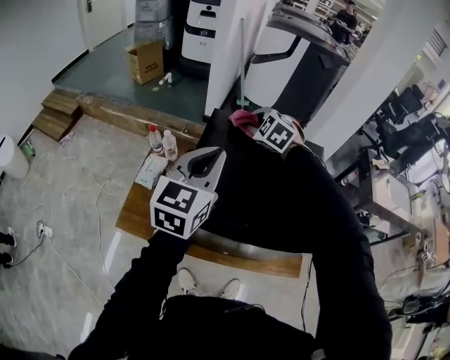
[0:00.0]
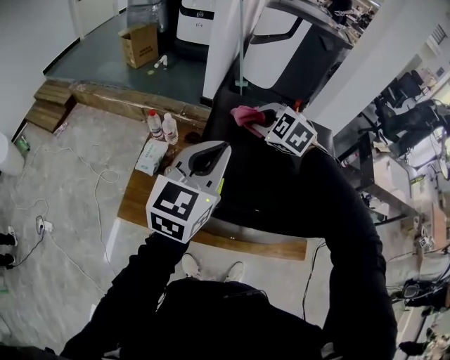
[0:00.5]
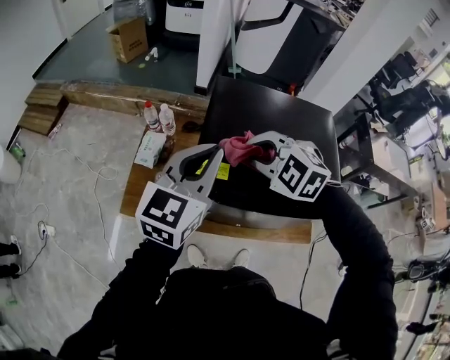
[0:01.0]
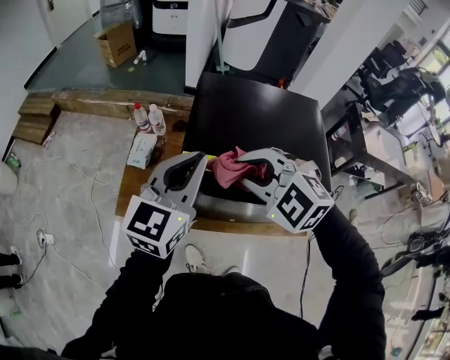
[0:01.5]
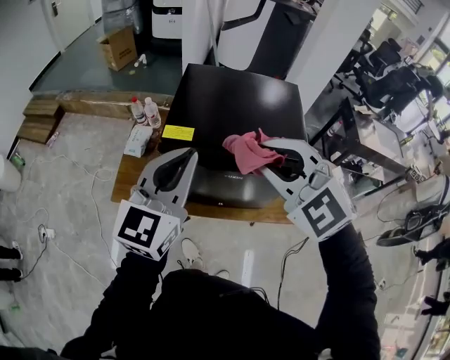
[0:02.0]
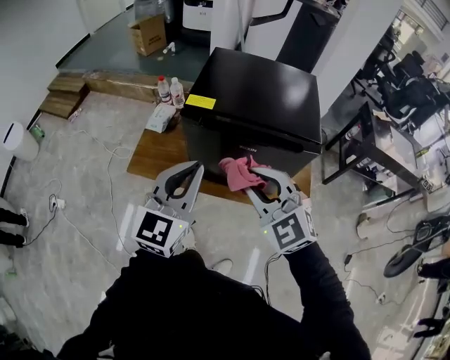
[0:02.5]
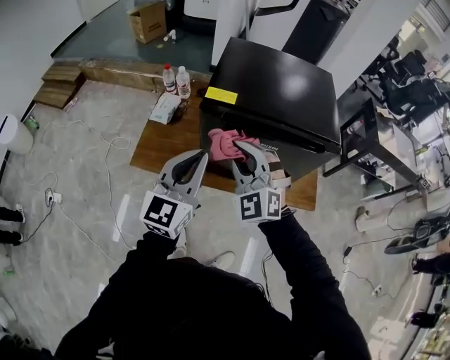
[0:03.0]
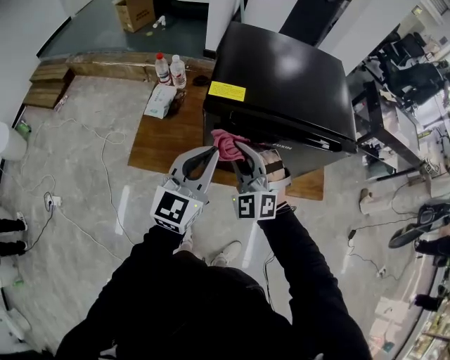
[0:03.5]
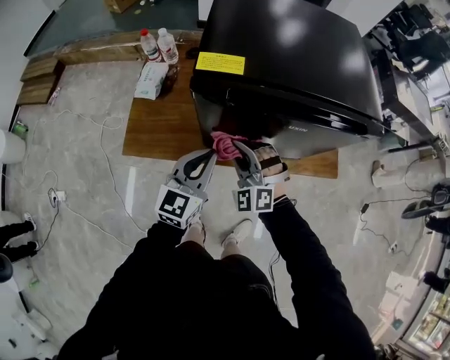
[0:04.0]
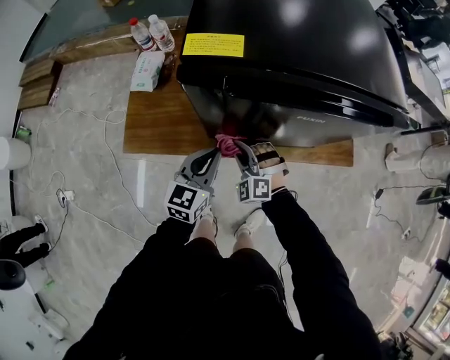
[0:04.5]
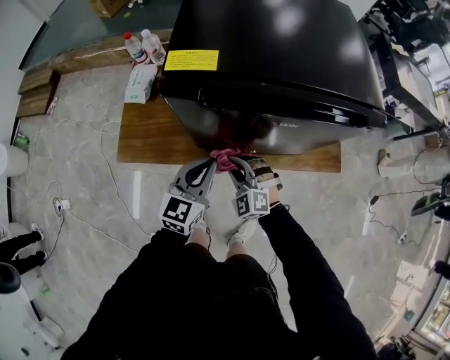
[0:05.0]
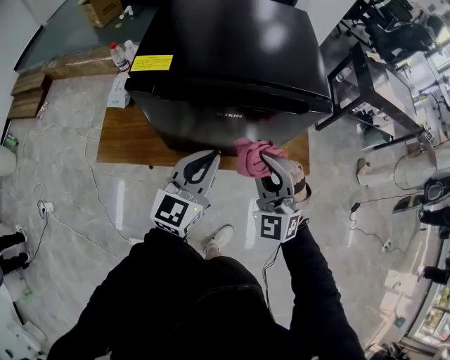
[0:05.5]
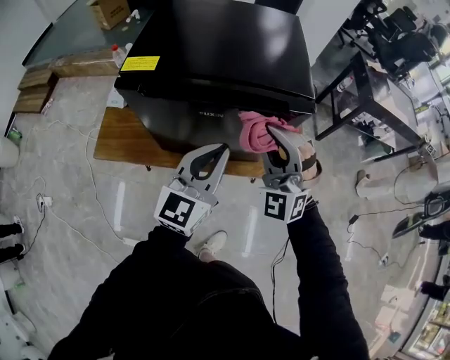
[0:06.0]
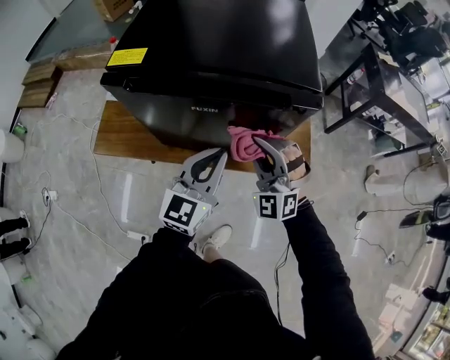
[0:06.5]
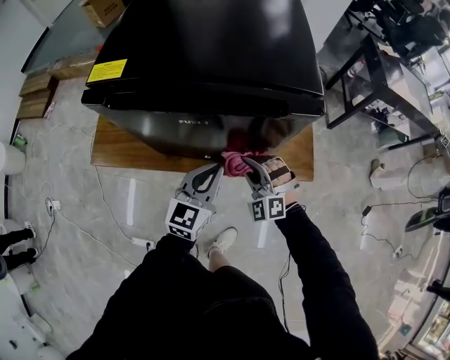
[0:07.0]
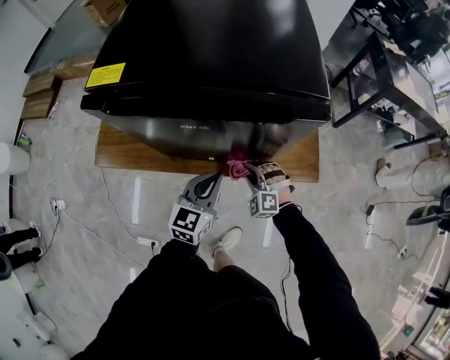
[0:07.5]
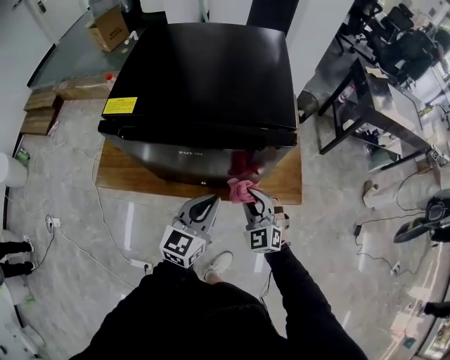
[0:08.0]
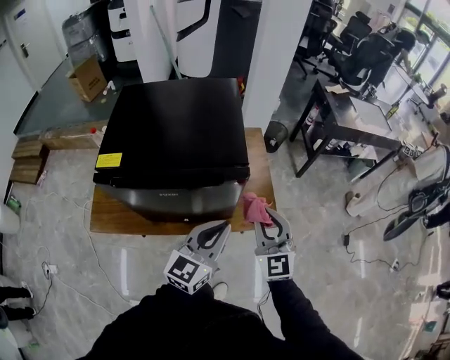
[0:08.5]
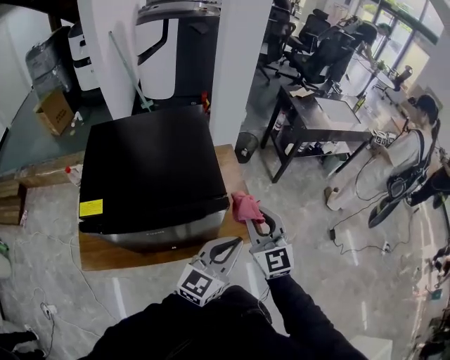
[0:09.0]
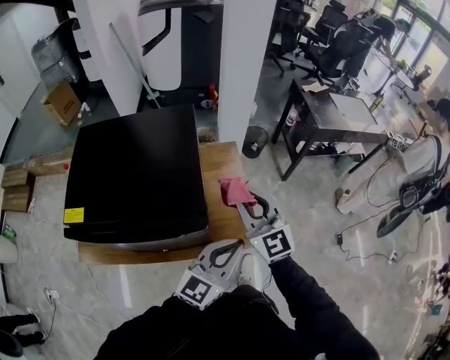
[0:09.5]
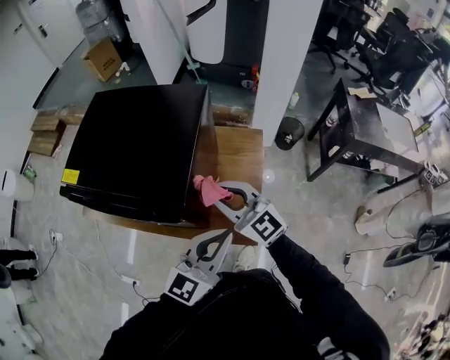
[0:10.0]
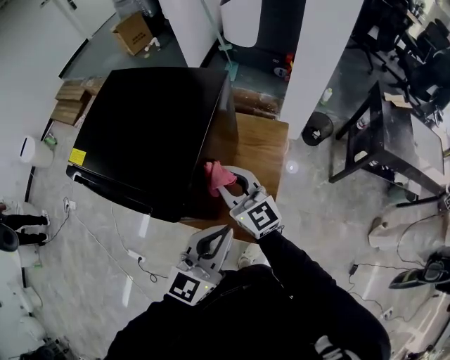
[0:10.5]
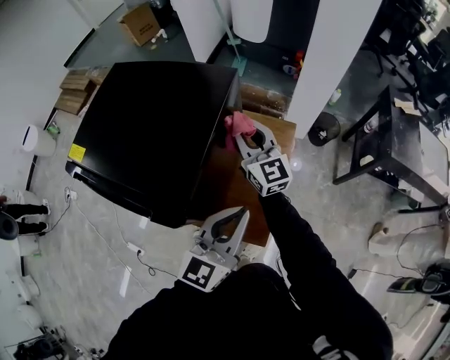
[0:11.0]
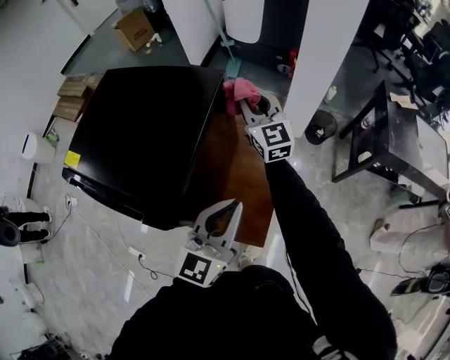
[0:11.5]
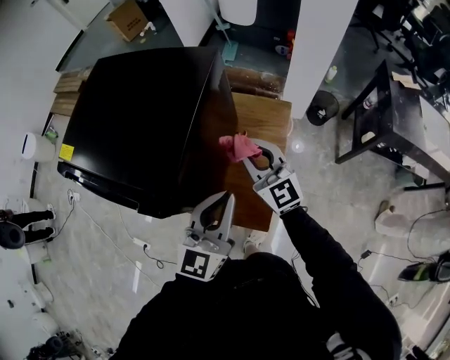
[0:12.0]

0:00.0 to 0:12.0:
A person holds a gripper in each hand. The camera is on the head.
0:00.0 to 0:02.0: The right gripper heads backward, covering roughly 40 cm. Meanwhile the left gripper moves backward, roughly 20 cm.
0:02.0 to 0:04.0: Both grippers move downward, approximately 35 cm.
0:04.0 to 0:06.0: The grippers both shift to the right and upward by approximately 25 cm. The right gripper turns by roughly 20 degrees.
0:06.0 to 0:08.0: The left gripper moves downward, some 10 cm. Meanwhile the right gripper moves downward, about 20 cm, and rotates approximately 40 degrees.
0:08.0 to 0:10.0: The right gripper ends up some 30 cm from where it was, and swivels about 50 degrees. Meanwhile the left gripper changes place by roughly 30 cm.
0:10.0 to 0:12.0: The right gripper travels forward, downward and to the right by about 15 cm. The left gripper moves forward, approximately 10 cm, and swivels some 20 degrees.

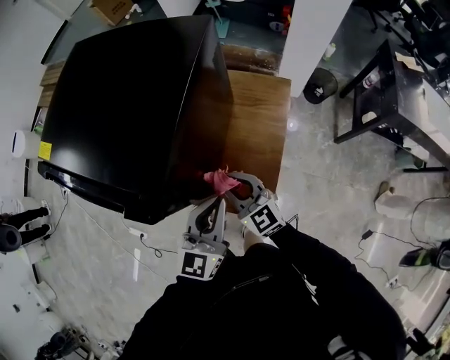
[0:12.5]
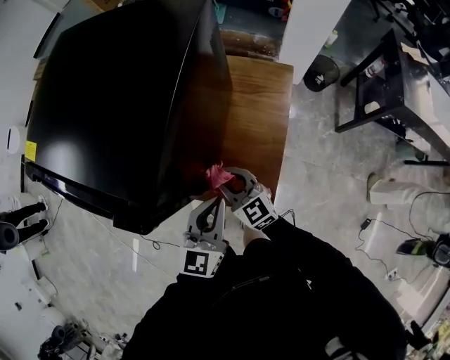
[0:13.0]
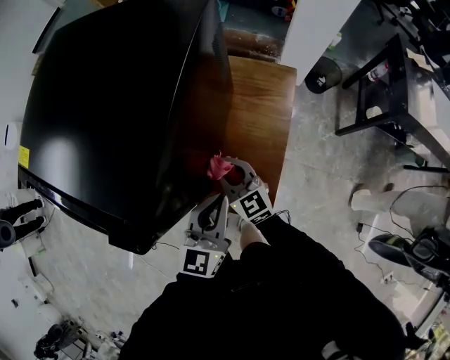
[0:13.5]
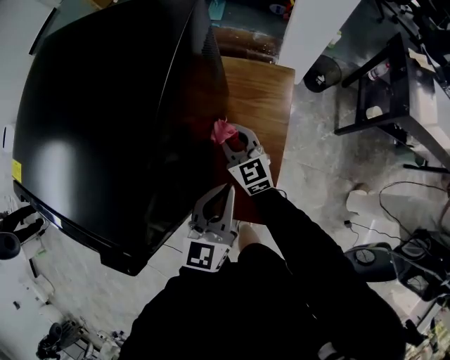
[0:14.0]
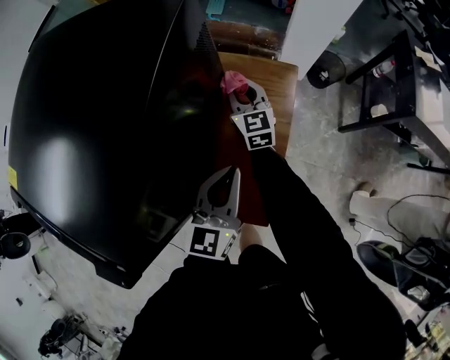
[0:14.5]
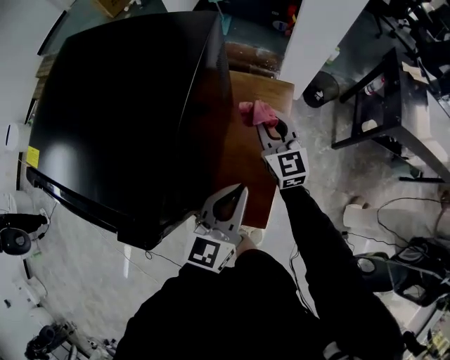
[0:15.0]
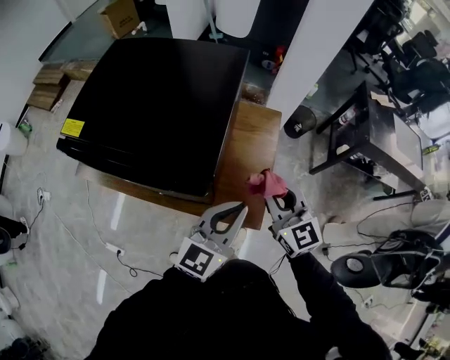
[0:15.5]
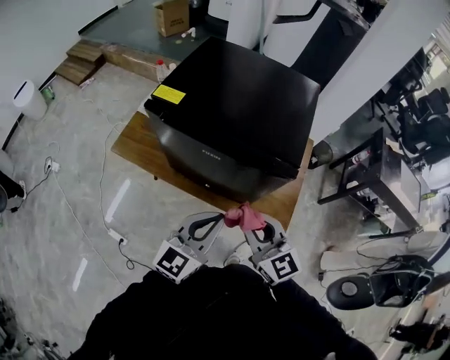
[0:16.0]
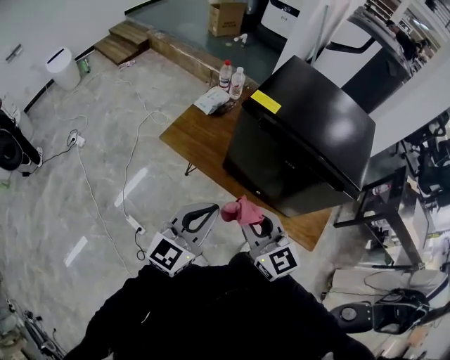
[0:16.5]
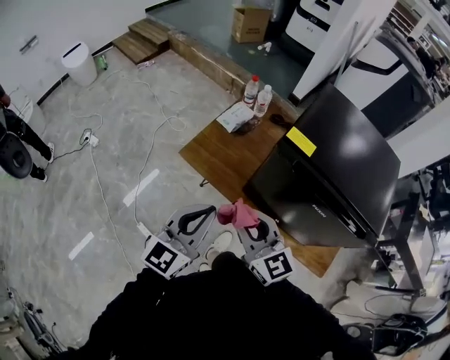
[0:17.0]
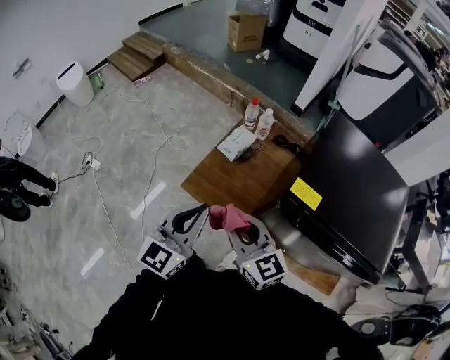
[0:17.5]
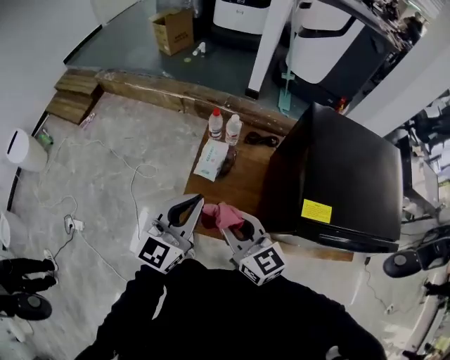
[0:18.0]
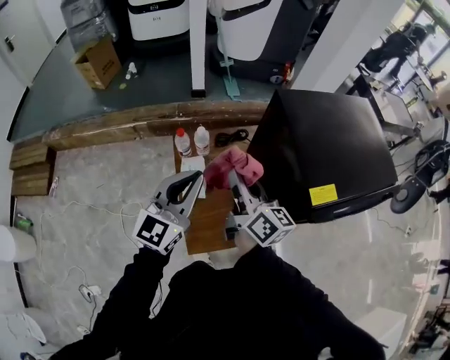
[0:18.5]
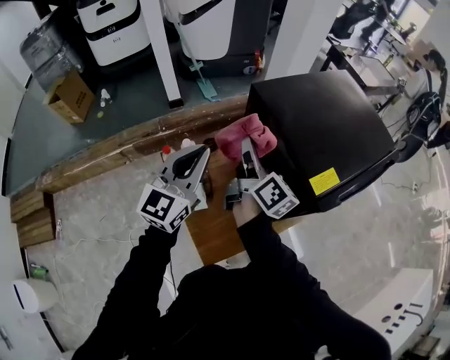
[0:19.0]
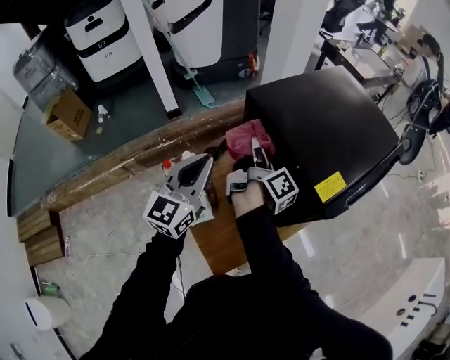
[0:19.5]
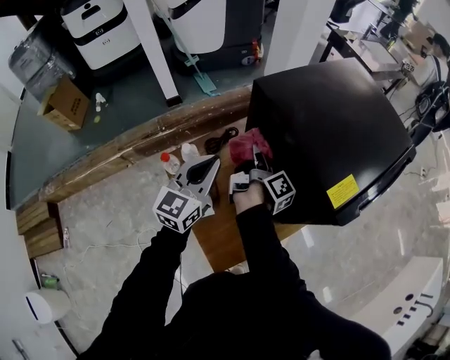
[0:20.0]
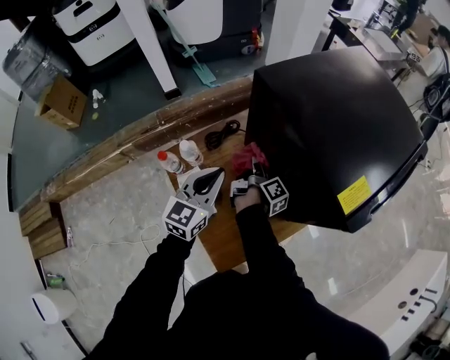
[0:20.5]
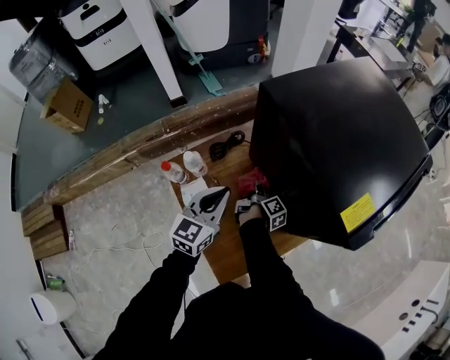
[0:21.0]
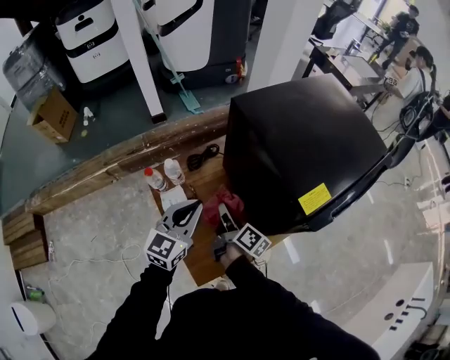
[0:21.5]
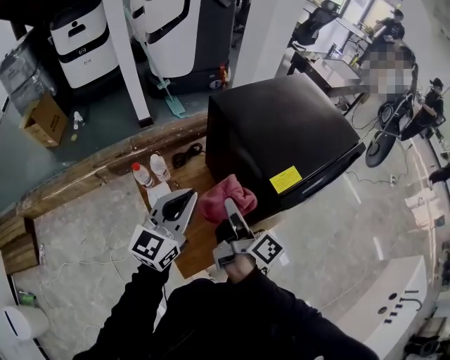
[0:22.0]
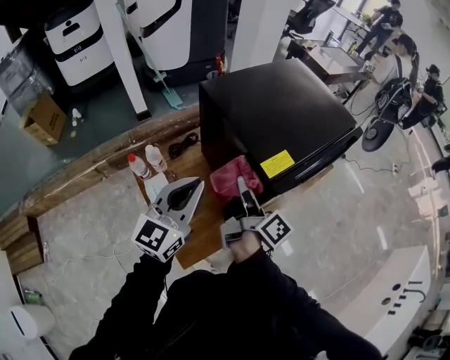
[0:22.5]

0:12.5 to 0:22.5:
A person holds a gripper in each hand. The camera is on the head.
0:12.5 to 0:14.5: The right gripper is displaced forward by about 30 cm, and changes its angle by about 20 degrees. Meanwhile the left gripper goes approximately 15 cm forward, downward and to the right.
0:14.5 to 0:16.5: Both grippers are carried to the left and backward, some 60 cm. The right gripper moves upward, approximately 30 cm, and swivels roughly 30 degrees.
0:16.5 to 0:18.5: The two grippers travel together, some 60 cm. The left gripper rotates about 40 degrees. The right gripper rotates about 70 degrees.
0:18.5 to 0:20.5: The left gripper moves downward, roughly 15 cm, and rotates approximately 20 degrees, while the right gripper goes roughly 30 cm downward, and changes its angle by some 70 degrees.
0:20.5 to 0:22.5: The right gripper travels upward, backward and to the right by roughly 30 cm, and changes its angle by some 30 degrees. Meanwhile the left gripper shifts roughly 25 cm upward, to the right and backward.

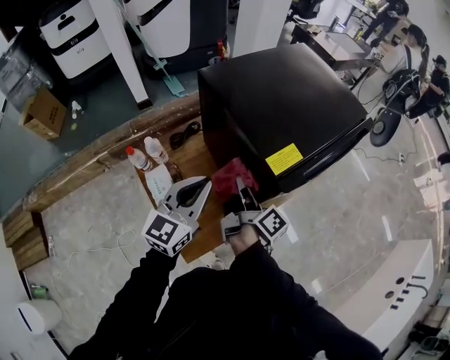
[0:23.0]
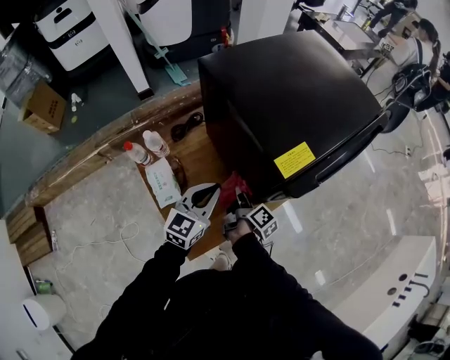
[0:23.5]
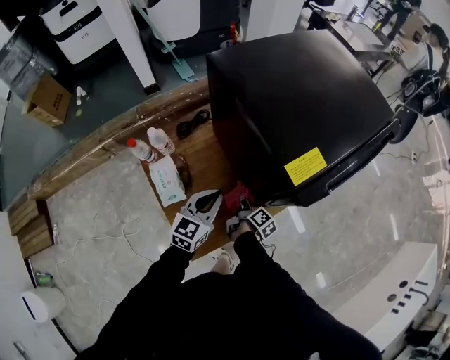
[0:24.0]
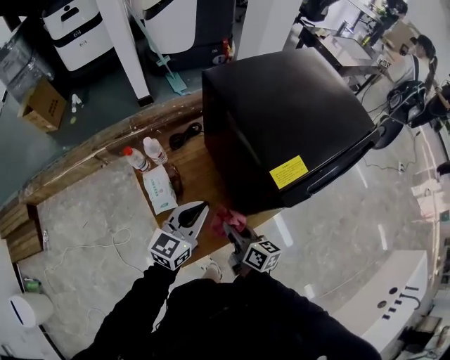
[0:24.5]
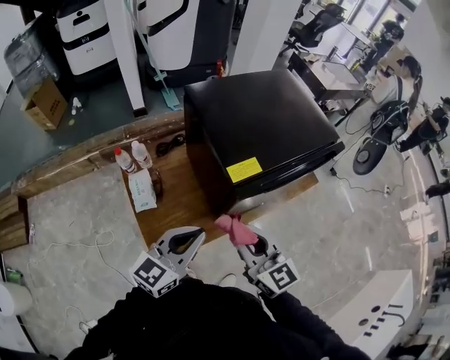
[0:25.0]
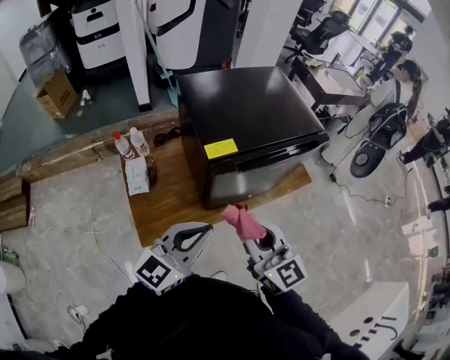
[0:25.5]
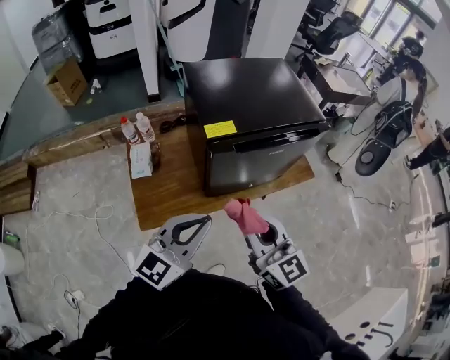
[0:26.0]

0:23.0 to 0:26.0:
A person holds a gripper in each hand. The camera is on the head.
0:23.0 to 0:24.5: The right gripper is displaced backward by approximately 10 cm, reaches some 30 cm downward, then returns, and turns by approximately 50 degrees, while the left gripper shifts about 10 cm downward.
0:24.5 to 0:26.0: The right gripper moves upward, to the right and backward, about 35 cm, and rotates around the line of its fingers by some 40 degrees, counterclockwise from behind. Meanwhile the left gripper heads backward, to the right and upward, covering approximately 35 cm.

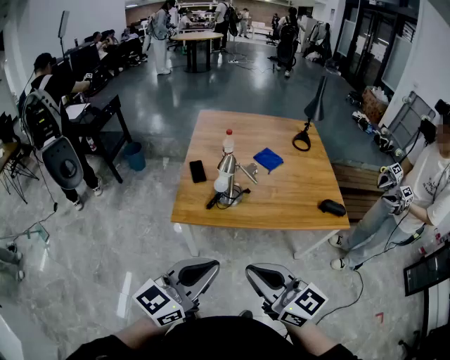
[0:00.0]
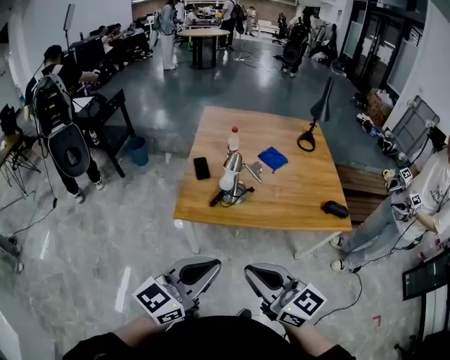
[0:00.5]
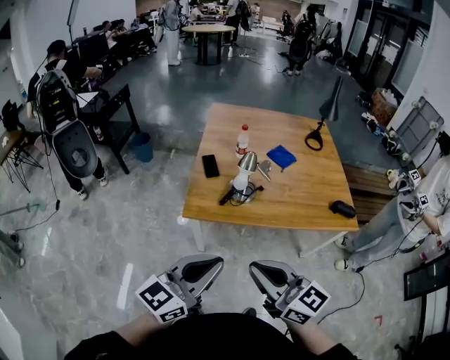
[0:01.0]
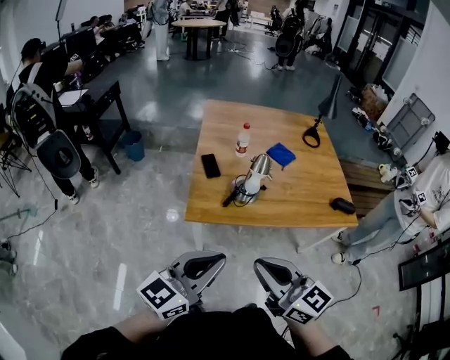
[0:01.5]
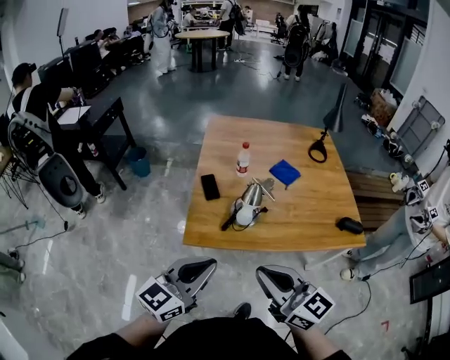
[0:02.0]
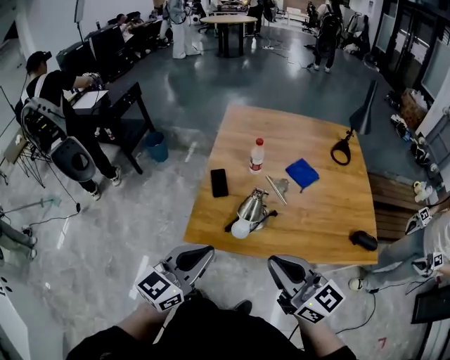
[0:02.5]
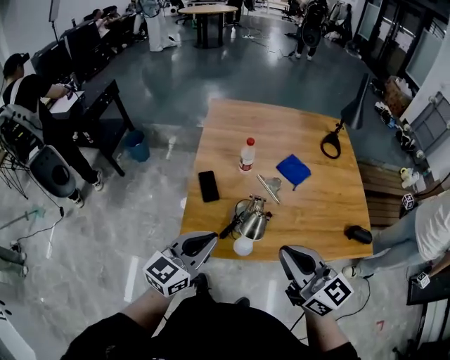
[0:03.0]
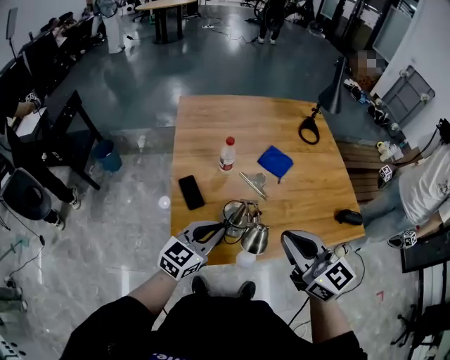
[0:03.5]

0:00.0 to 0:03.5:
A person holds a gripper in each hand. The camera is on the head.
0:00.0 to 0:02.0: The grippers both shift forward and to the left by about 15 cm.
0:02.0 to 0:03.5: The left gripper travels forward and downward by some 30 cm, while the right gripper heads forward, covering approximately 20 cm.
